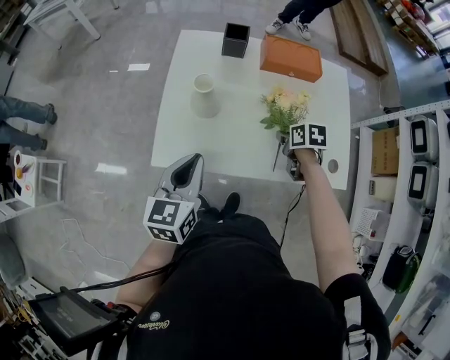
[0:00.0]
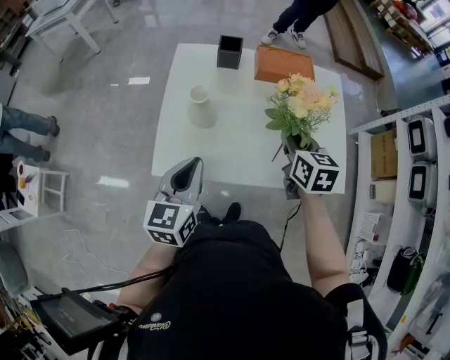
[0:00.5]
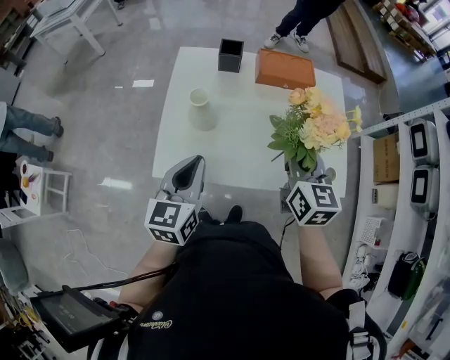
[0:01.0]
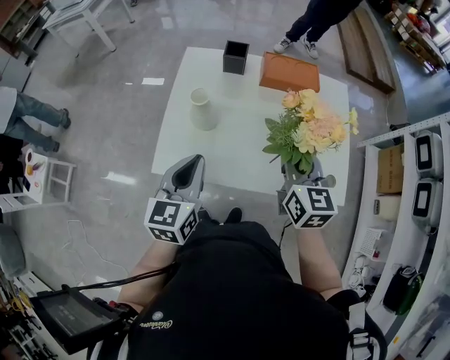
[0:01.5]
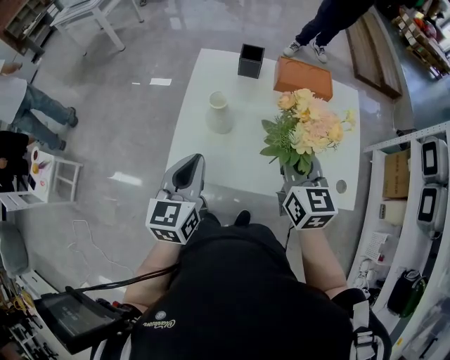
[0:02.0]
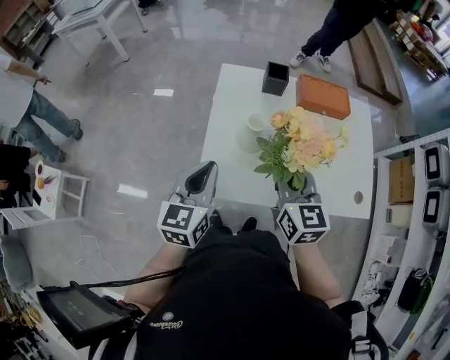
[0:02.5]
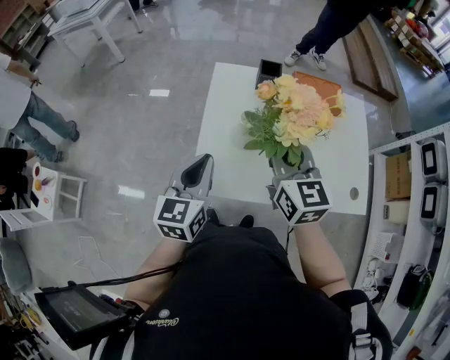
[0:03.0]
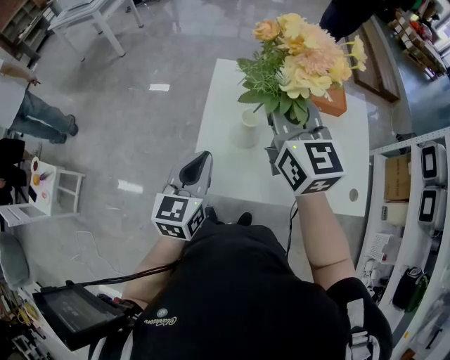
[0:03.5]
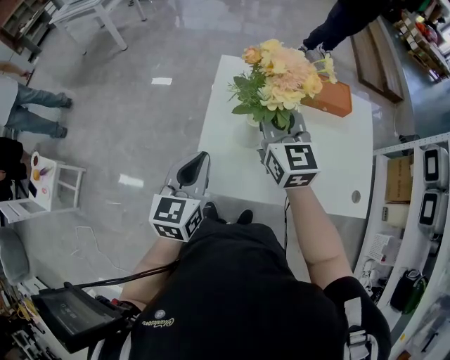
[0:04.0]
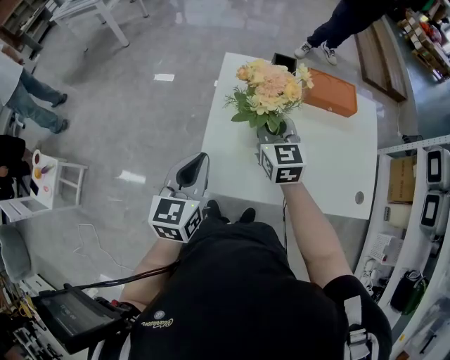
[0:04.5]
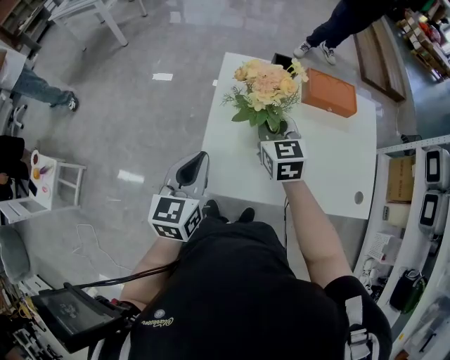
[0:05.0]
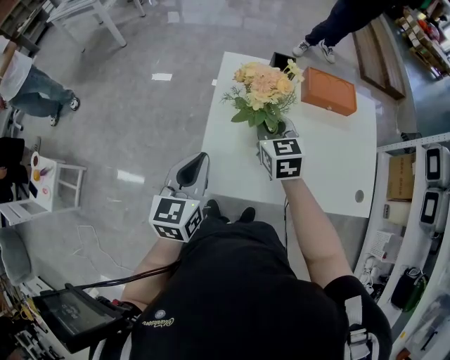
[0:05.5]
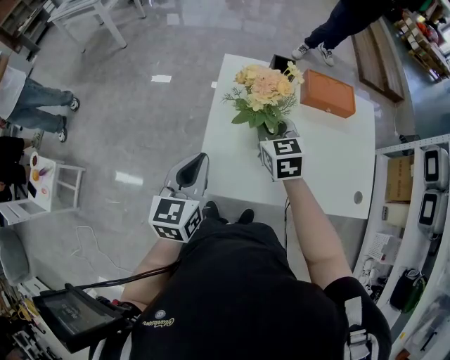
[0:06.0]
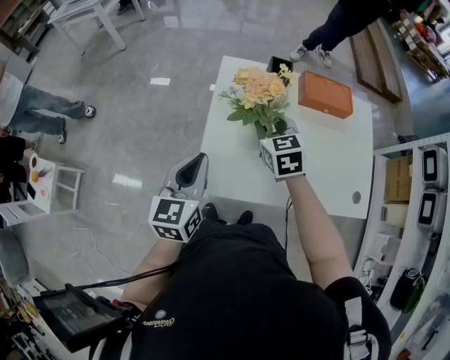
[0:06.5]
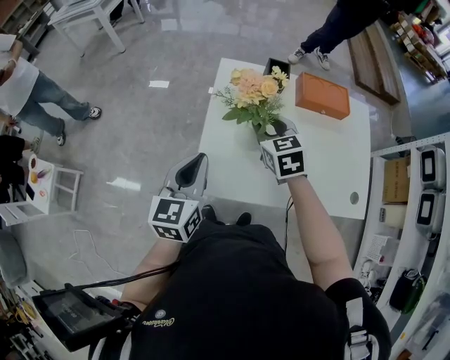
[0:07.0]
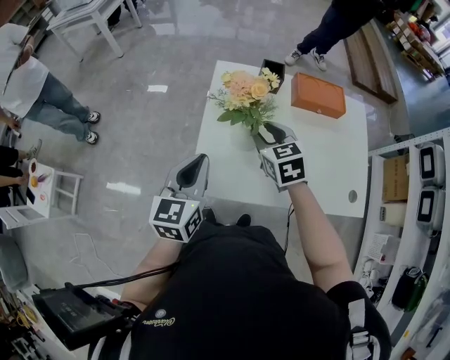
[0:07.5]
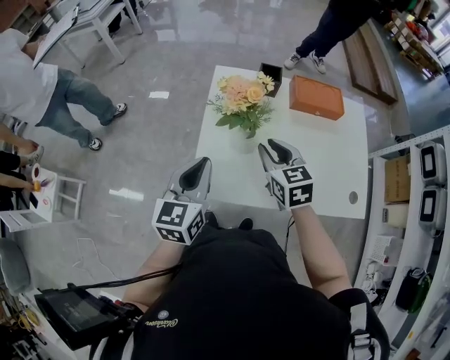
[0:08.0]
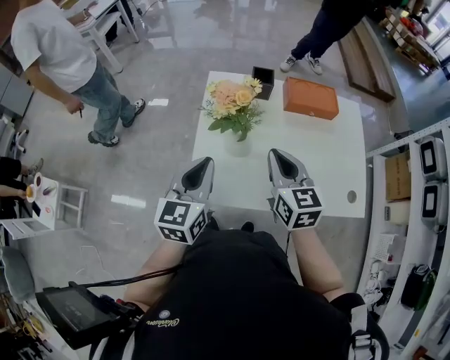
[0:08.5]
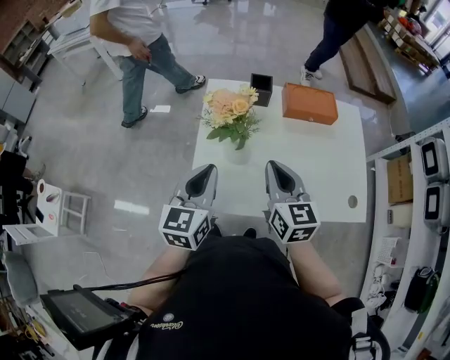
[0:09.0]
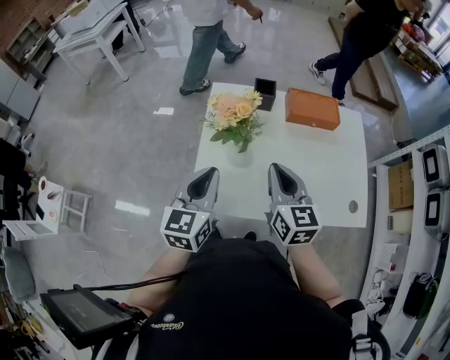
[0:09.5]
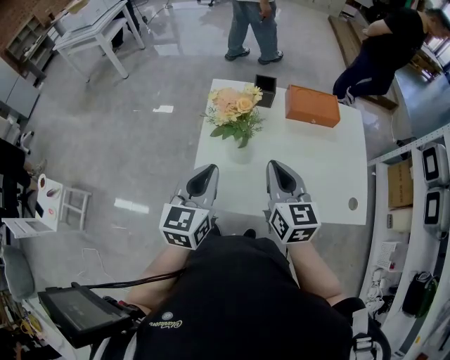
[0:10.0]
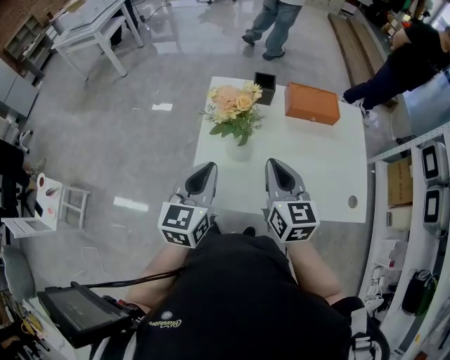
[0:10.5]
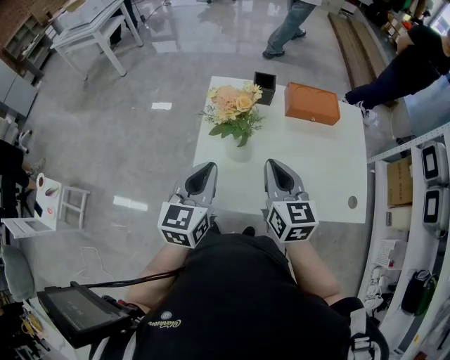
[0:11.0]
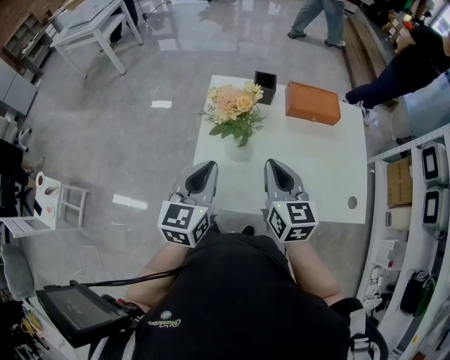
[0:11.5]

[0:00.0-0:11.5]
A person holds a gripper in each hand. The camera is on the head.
0:00.0 to 0:02.0: The left gripper changes place by approximately 5 cm, while the right gripper moves upward, roughly 25 cm, and points its fingers approximately 50 degrees further upward.
0:02.0 to 0:04.0: The right gripper heads to the left and forward, covering some 20 cm, while the left gripper heads to the left, covering some 10 cm.
0:04.0 to 0:06.0: The right gripper travels downward by some 10 cm, and turns by roughly 20 degrees.
0:06.0 to 0:07.5: There are only small adjustments of the grippers.
0:07.5 to 0:09.5: The right gripper goes roughly 10 cm backward, upward and to the right, swivels roughly 30 degrees, and closes. Meanwhile the left gripper ends up about 5 cm from where it was.
0:09.5 to 0:11.5: The two grippers keep their place.

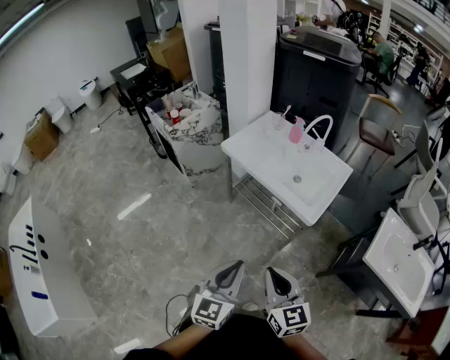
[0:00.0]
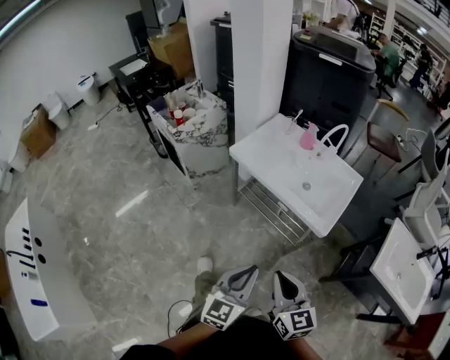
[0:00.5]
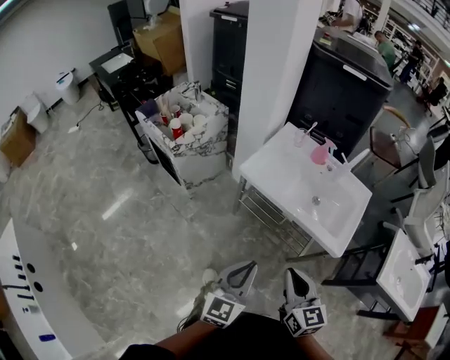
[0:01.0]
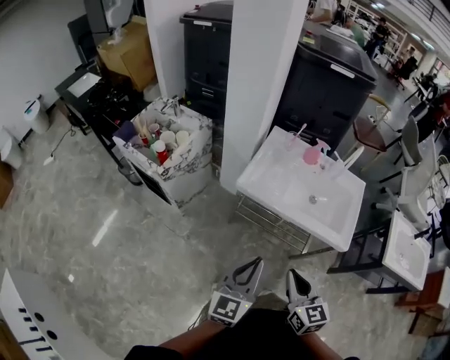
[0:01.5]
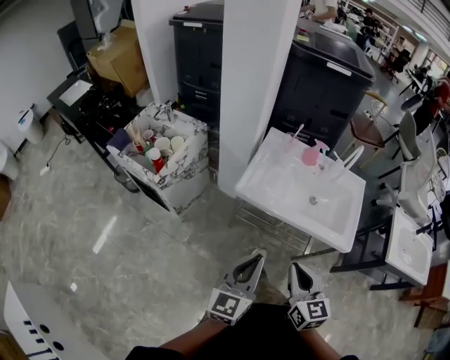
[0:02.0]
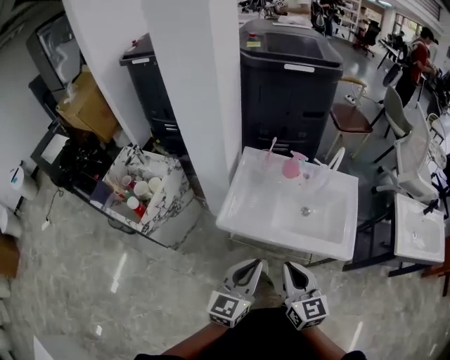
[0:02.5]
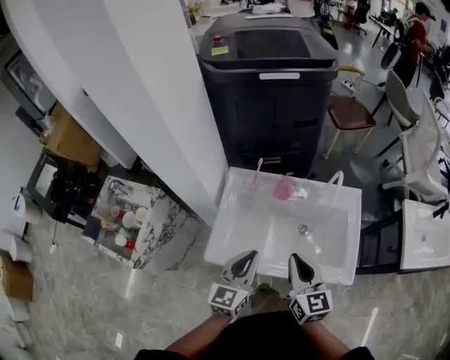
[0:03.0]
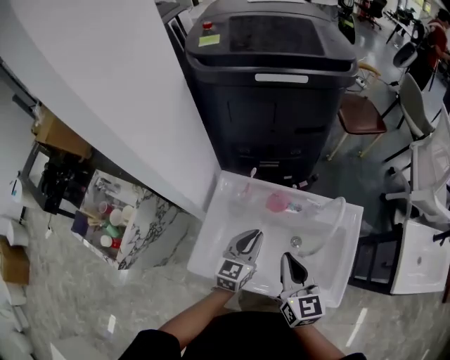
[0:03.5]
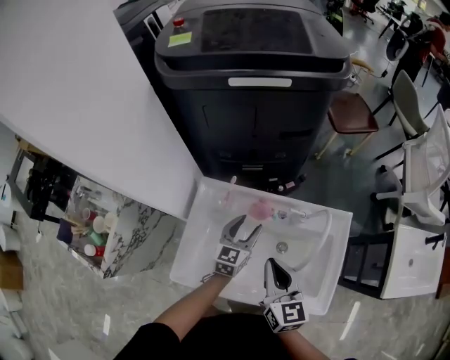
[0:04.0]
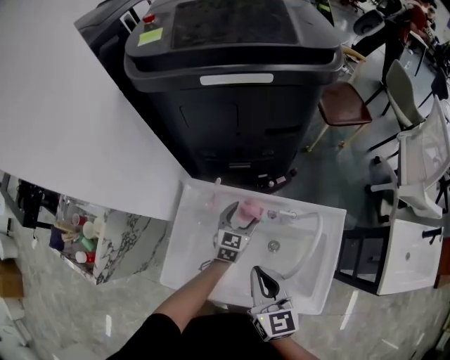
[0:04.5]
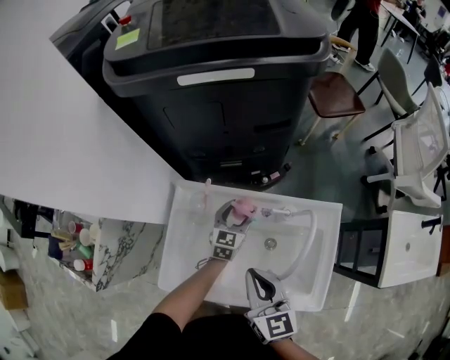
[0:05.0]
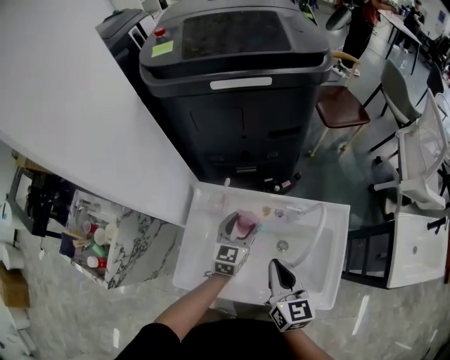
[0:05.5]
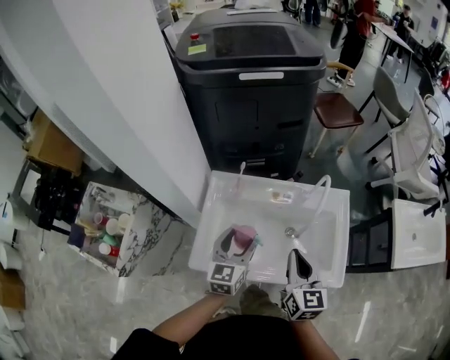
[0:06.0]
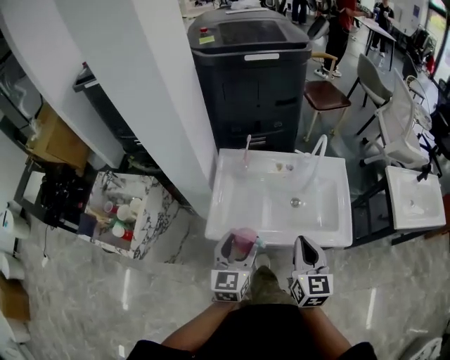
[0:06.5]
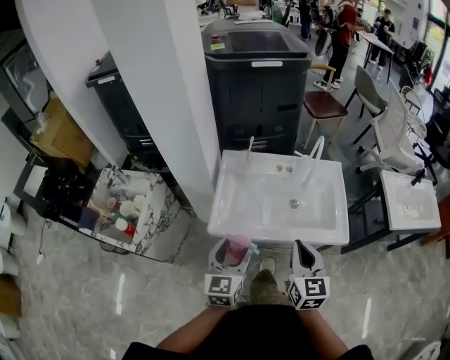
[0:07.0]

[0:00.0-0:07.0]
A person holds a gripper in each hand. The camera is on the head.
0:00.0 to 0:02.0: The two grippers travel together, forward and to the left, about 40 cm. The left gripper turns by approximately 20 degrees, while the right gripper rotates roughly 30 degrees.
0:02.0 to 0:03.5: The pair of grippers is taken forward, some 50 cm.
0:03.5 to 0:05.0: The left gripper moves forward, downward and to the right, roughly 20 cm, and opens. The right gripper ends up approximately 5 cm from where it was.
0:05.0 to 0:07.0: The left gripper travels backward and upward by approximately 50 cm. The right gripper shifts some 35 cm backward.

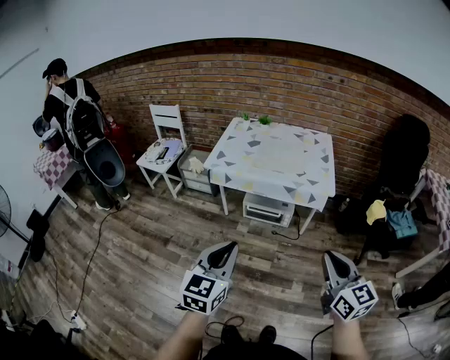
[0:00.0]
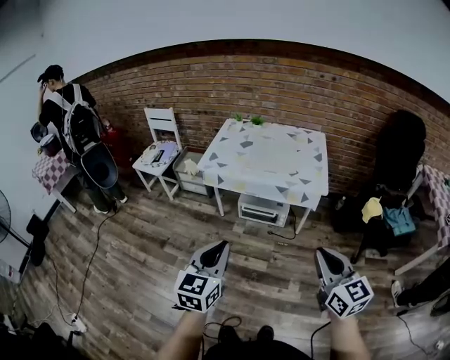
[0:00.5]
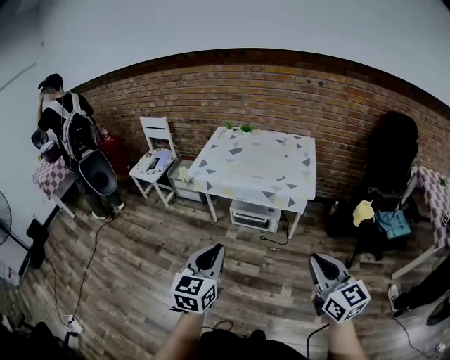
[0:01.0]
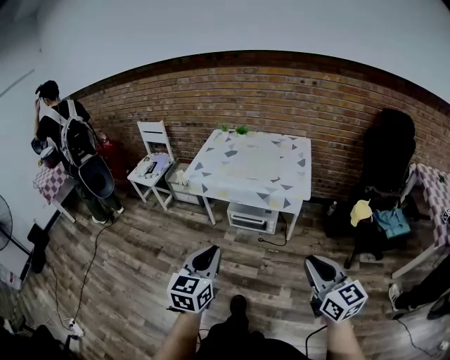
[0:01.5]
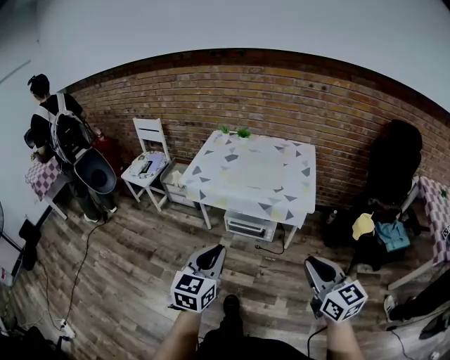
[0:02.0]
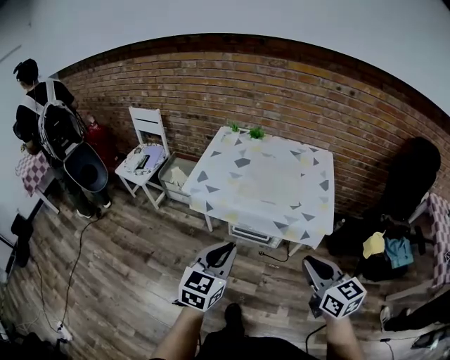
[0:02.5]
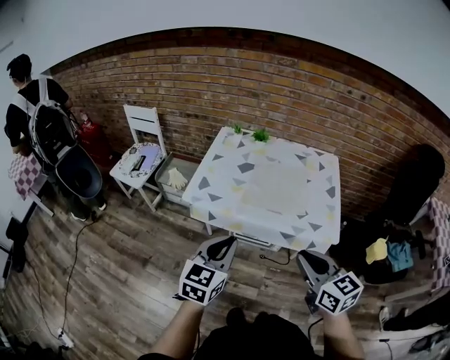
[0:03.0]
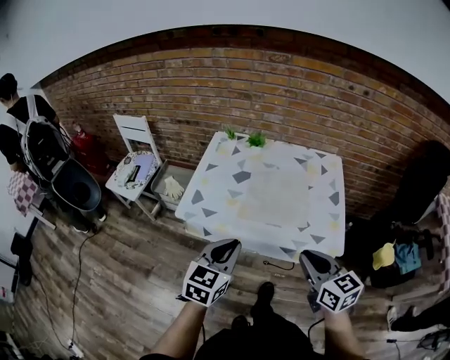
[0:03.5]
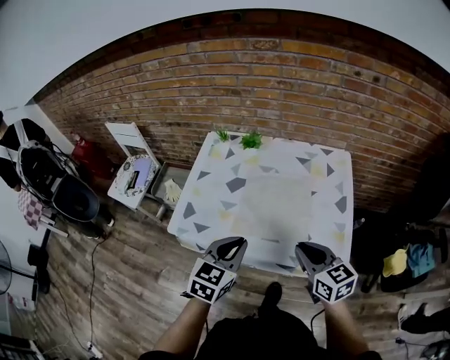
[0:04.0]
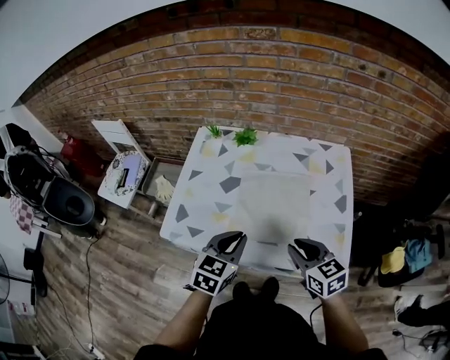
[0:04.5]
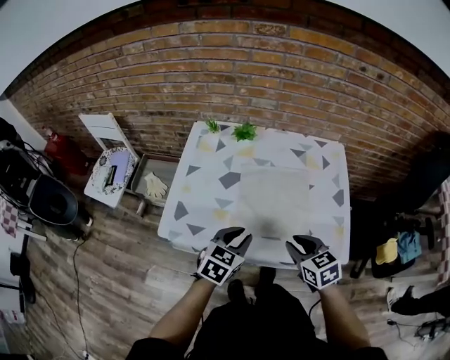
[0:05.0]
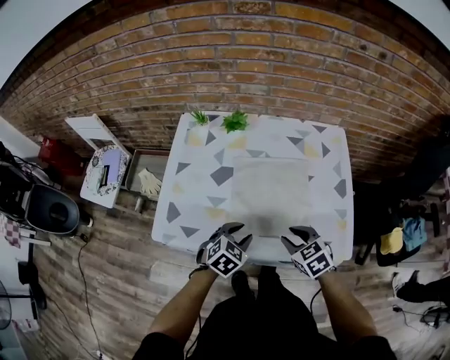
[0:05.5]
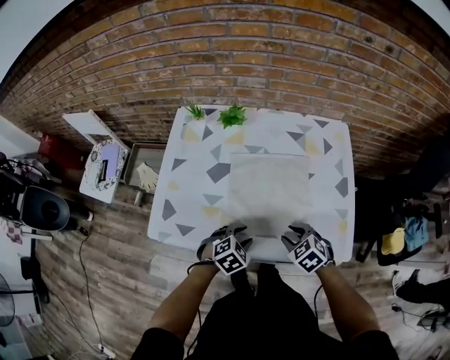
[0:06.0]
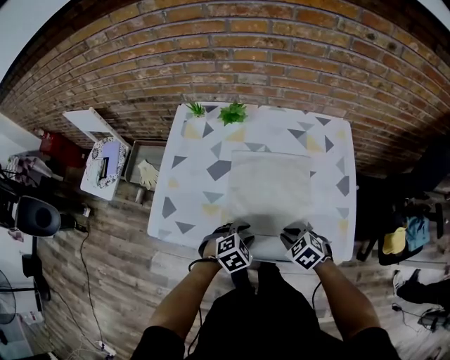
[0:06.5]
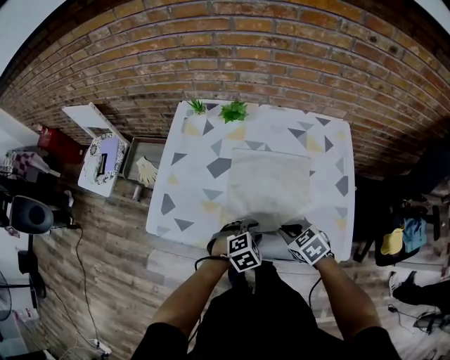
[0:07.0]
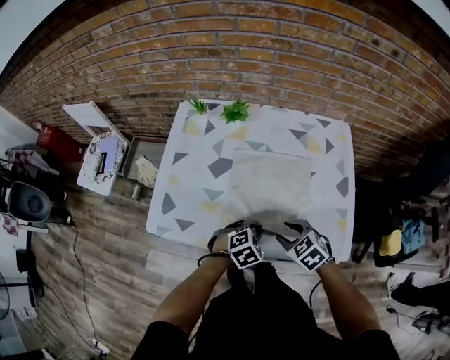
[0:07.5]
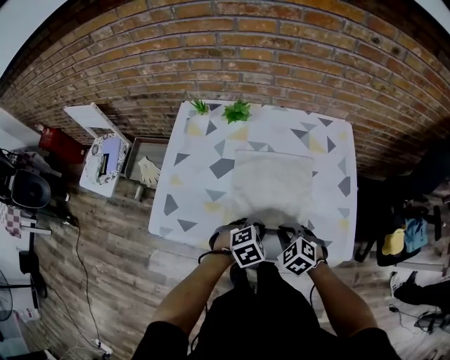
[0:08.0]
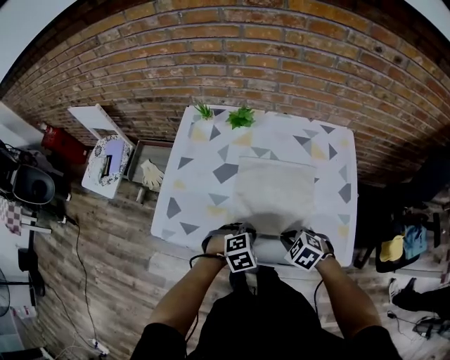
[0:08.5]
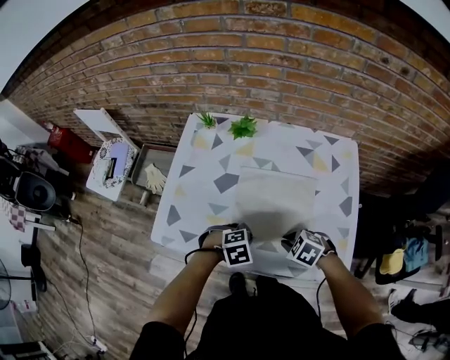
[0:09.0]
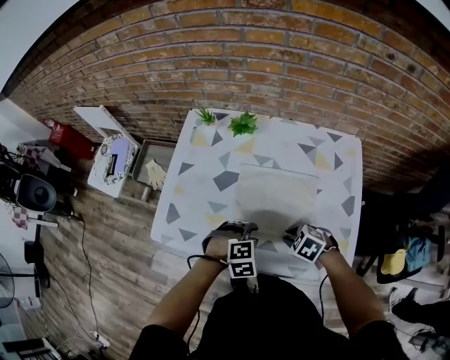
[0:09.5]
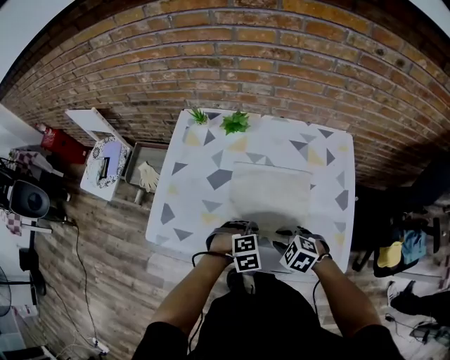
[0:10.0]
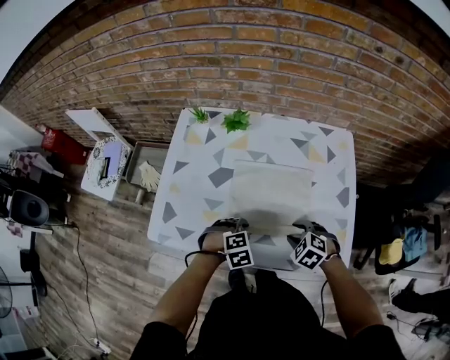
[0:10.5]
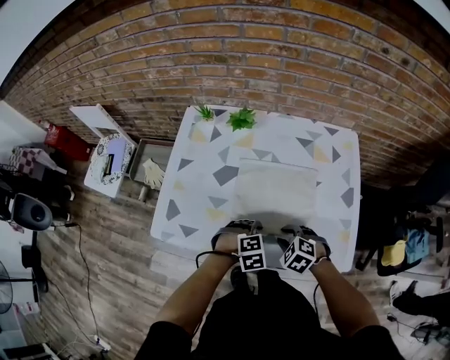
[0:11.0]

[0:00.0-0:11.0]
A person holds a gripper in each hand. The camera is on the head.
0:00.0 to 0:02.0: The two grippers go about 10 cm to the right and forward.
0:02.0 to 0:03.5: The two grippers go approximately 30 cm forward.
0:03.5 to 0:05.5: Both grippers move downward and forward, approximately 25 cm. The right gripper angles its fingers downward, by roughly 30 degrees, and opens its fingers, while the left gripper angles its fingers downward, by approximately 30 degrees, and opens.
0:05.5 to 0:07.5: The right gripper closes, then opens again. The left gripper is displaced to the right by some 5 cm, and closes.
0:07.5 to 0:09.0: The right gripper rotates roughly 20 degrees, and closes.
0:09.0 to 0:11.0: The left gripper opens up. Meanwhile the right gripper opens.
